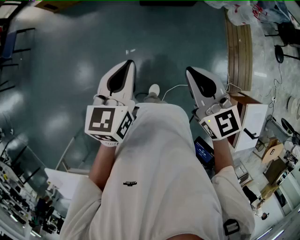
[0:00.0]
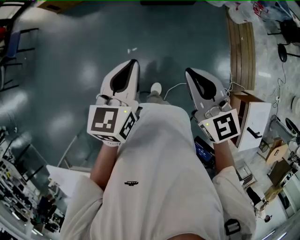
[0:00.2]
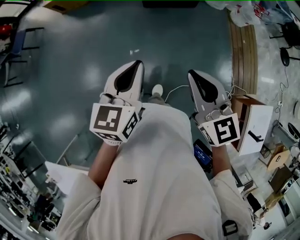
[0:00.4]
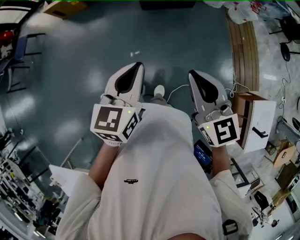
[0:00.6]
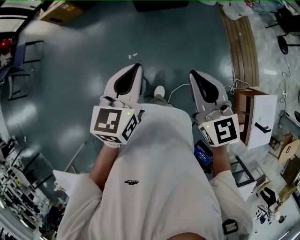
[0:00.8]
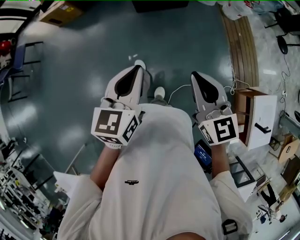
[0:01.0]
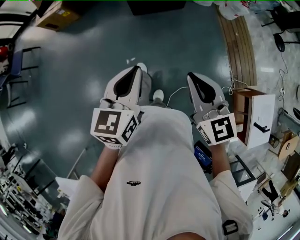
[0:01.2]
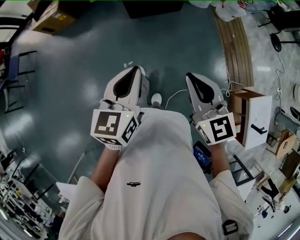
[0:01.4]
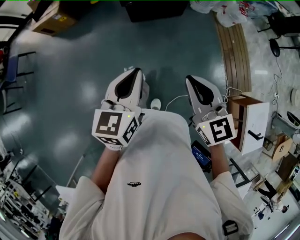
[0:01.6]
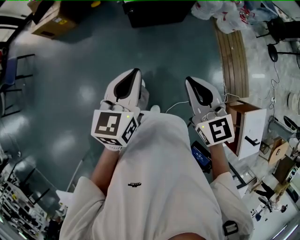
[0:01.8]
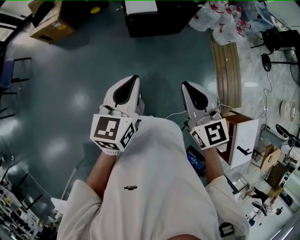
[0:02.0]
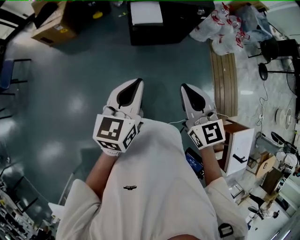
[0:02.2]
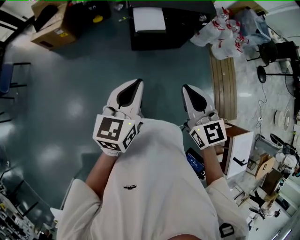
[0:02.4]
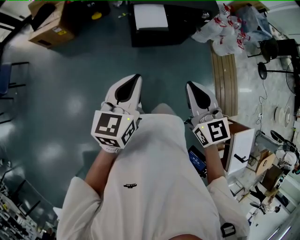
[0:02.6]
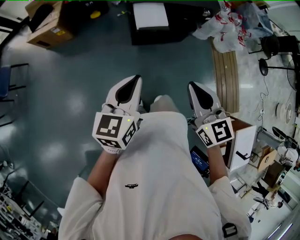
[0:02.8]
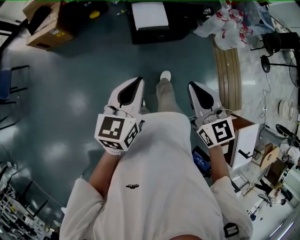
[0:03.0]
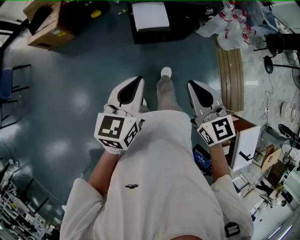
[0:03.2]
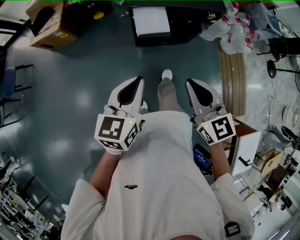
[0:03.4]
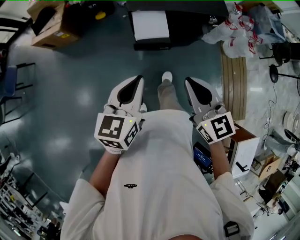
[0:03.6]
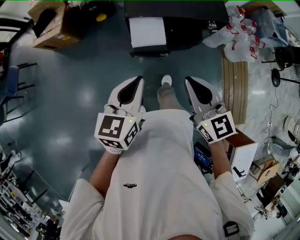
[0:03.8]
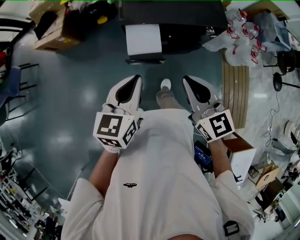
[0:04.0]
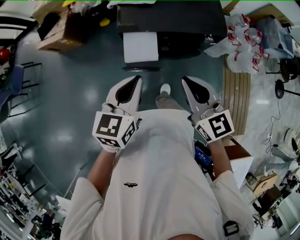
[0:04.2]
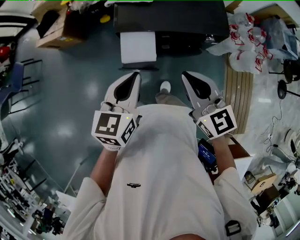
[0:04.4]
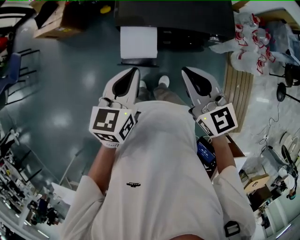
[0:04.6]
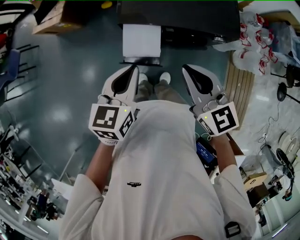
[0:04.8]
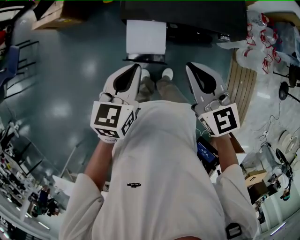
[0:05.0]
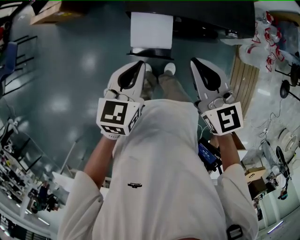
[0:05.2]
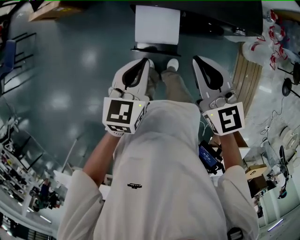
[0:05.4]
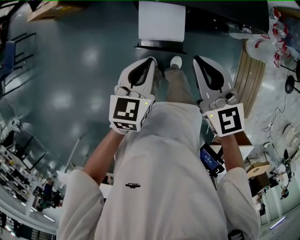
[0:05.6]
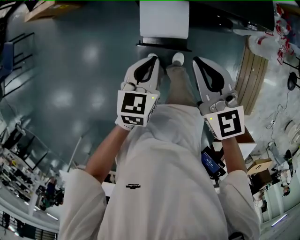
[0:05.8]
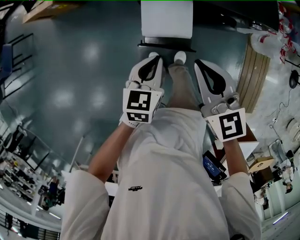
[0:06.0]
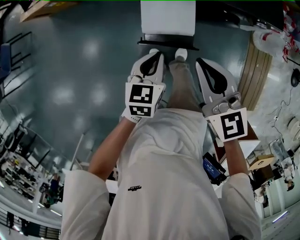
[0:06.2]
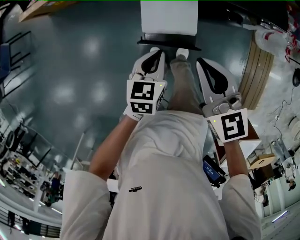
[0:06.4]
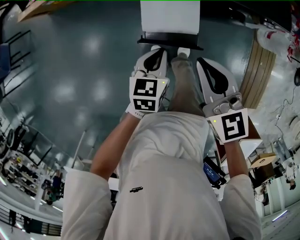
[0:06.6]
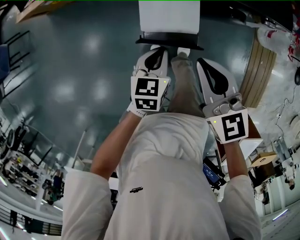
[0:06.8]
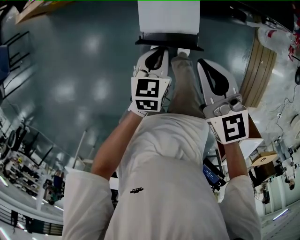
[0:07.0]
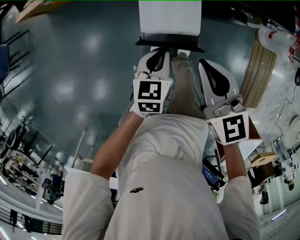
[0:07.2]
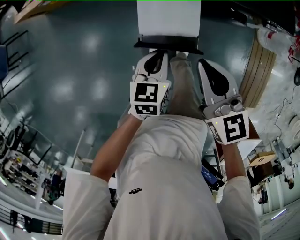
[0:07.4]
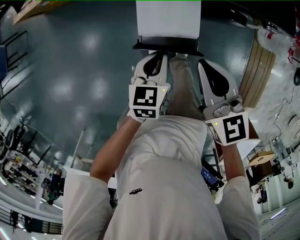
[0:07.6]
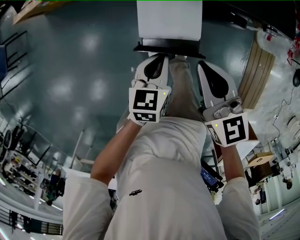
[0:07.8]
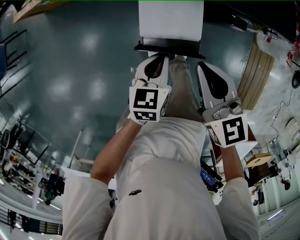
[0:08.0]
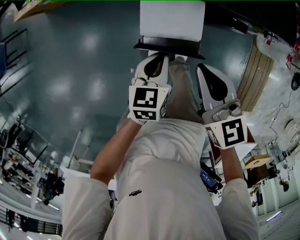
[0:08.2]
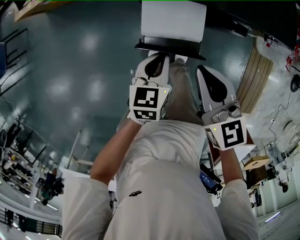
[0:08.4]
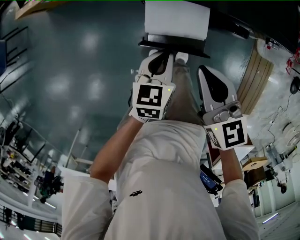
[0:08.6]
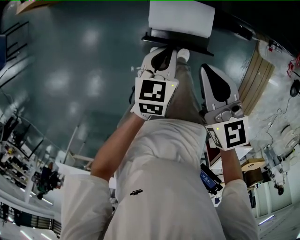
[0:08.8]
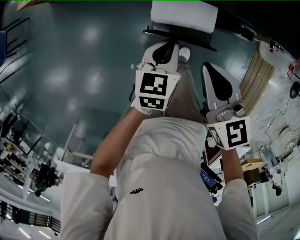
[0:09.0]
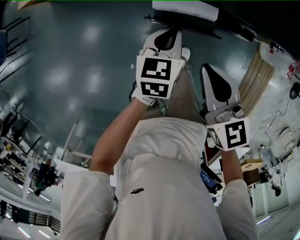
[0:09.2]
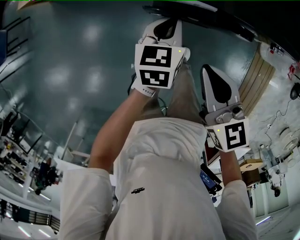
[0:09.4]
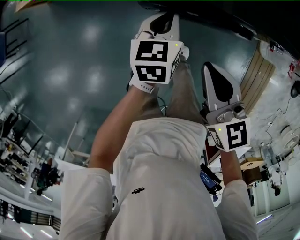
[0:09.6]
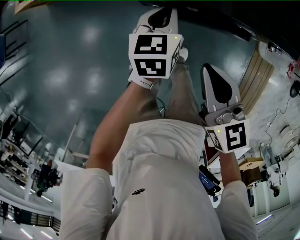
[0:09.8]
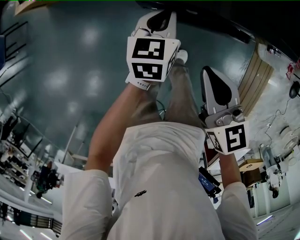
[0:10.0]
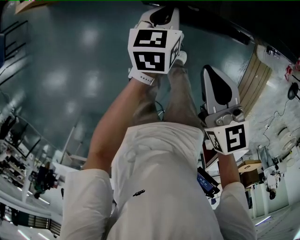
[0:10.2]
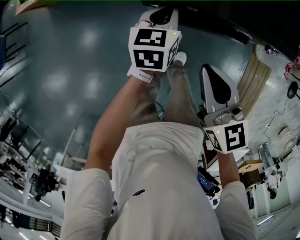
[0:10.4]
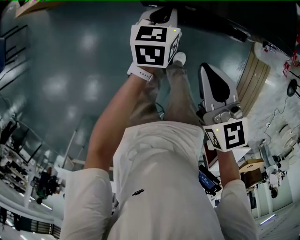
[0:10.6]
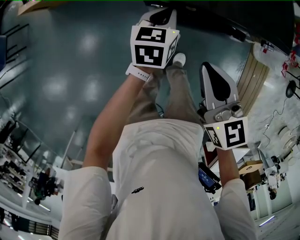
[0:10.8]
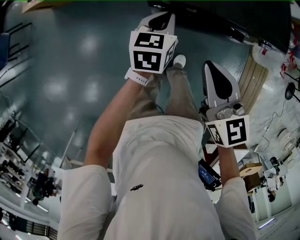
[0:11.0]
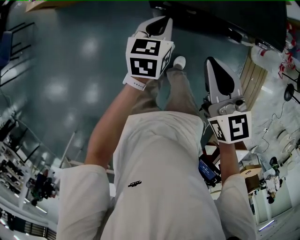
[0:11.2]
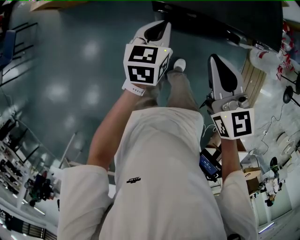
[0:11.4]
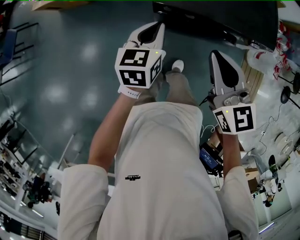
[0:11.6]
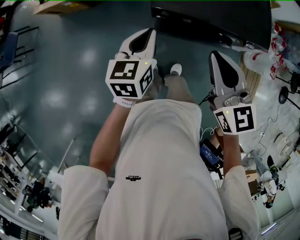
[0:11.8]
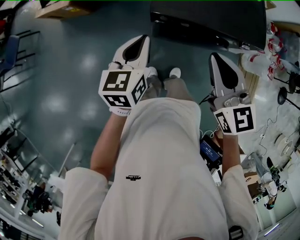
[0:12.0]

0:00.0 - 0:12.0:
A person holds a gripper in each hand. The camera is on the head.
0:00.0 - 0:01.6: The grippers both shift to the right by some 5 cm. The right gripper travels backward and back again, approximately 10 cm each way. The left gripper moves some 10 cm backward and comes back.
0:01.6 - 0:03.0: The right gripper goes approximately 20 cm forward; the left gripper is displaced forward and to the left by approximately 20 cm.
0:03.0 - 0:04.4: The grippers both shift forward and to the right by roughly 25 cm.
0:04.4 - 0:06.0: The right gripper heads to the left and downward, covering roughly 15 cm. Meanwhile the left gripper travels downward by about 20 cm.
0:06.0 - 0:07.6: The two grippers go about 5 cm downward.
0:07.6 - 0:09.0: The left gripper travels forward by roughly 5 cm.
0:09.0 - 0:10.4: The left gripper travels forward by some 15 cm.
0:10.4 - 0:12.0: The right gripper moves upward, some 15 cm. The left gripper travels upward, backward and to the left by approximately 20 cm.

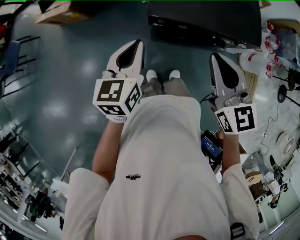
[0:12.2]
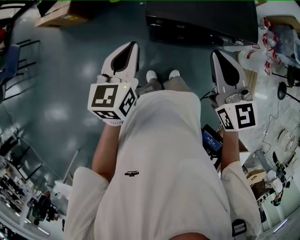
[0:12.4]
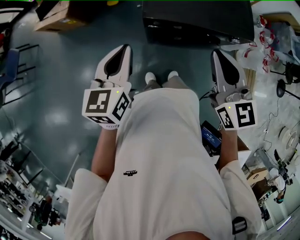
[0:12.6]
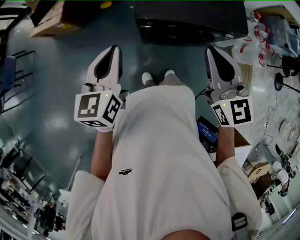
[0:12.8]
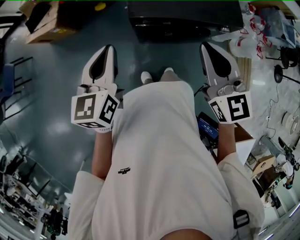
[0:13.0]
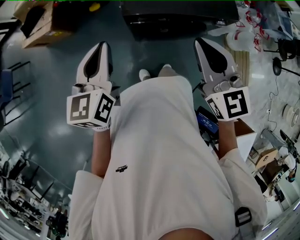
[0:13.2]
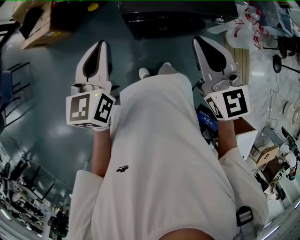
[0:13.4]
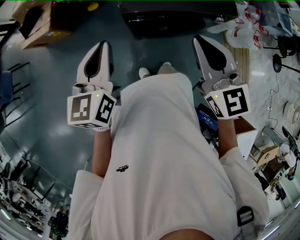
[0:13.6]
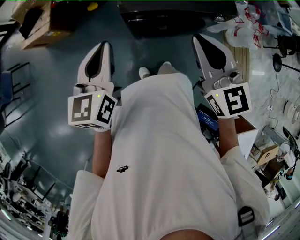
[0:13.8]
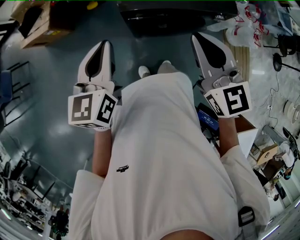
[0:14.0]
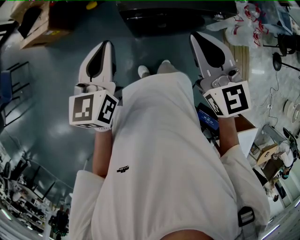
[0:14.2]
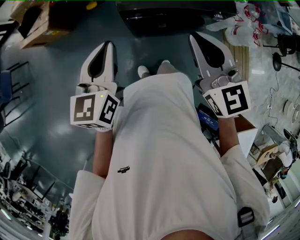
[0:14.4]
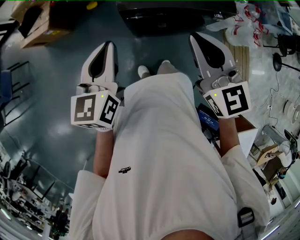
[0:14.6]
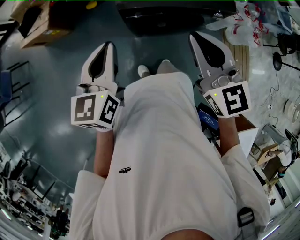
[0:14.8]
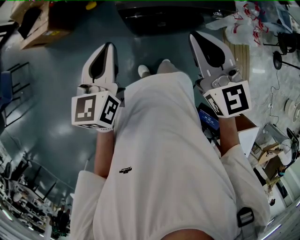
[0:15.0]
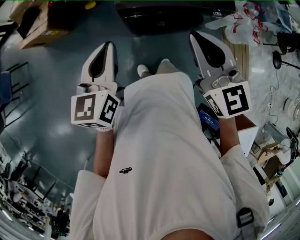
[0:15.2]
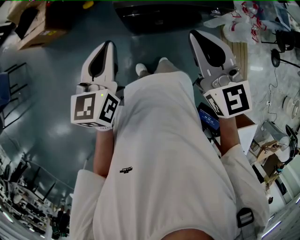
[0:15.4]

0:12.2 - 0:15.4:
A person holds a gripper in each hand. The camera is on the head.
0:12.2 - 0:13.8: The left gripper moves upward, about 5 cm.
0:13.8 - 0:15.4: The grippers move only a little.

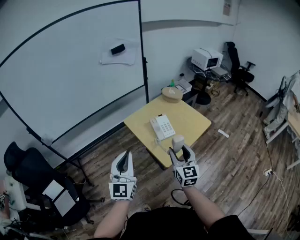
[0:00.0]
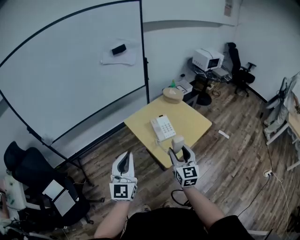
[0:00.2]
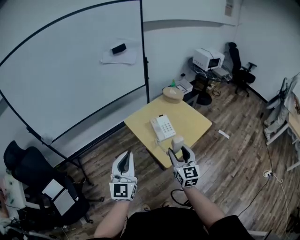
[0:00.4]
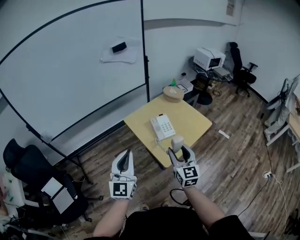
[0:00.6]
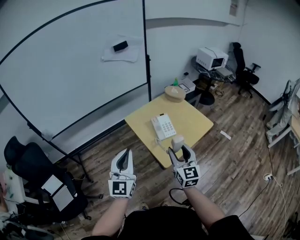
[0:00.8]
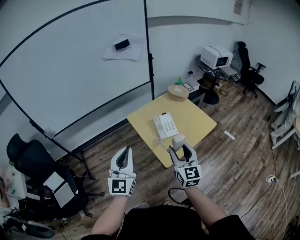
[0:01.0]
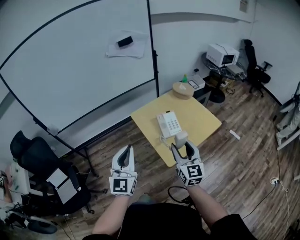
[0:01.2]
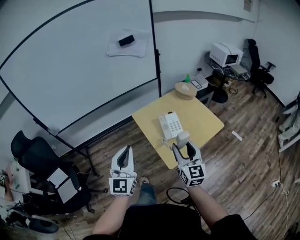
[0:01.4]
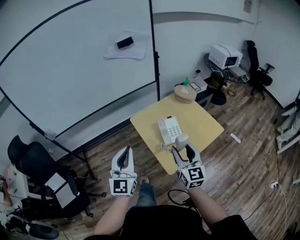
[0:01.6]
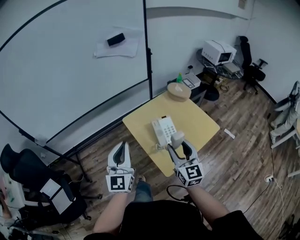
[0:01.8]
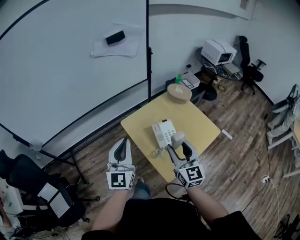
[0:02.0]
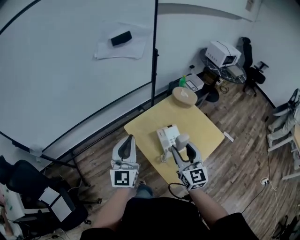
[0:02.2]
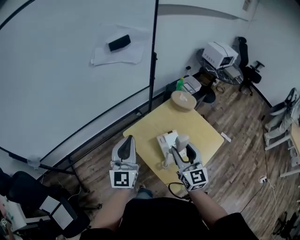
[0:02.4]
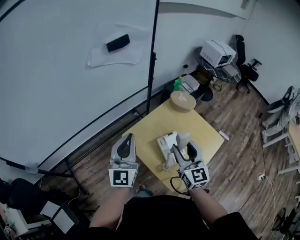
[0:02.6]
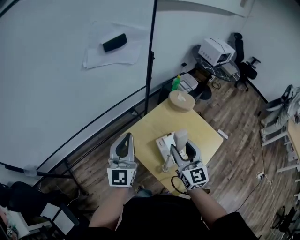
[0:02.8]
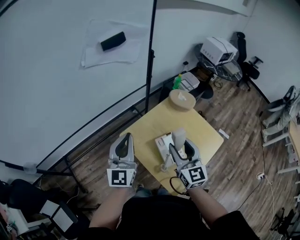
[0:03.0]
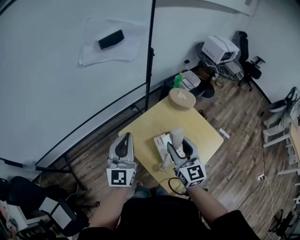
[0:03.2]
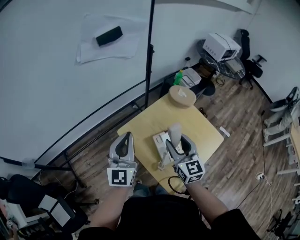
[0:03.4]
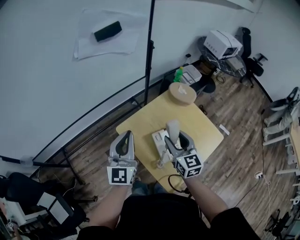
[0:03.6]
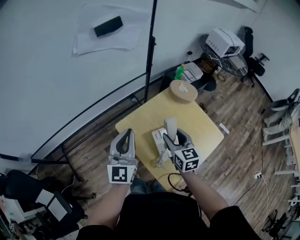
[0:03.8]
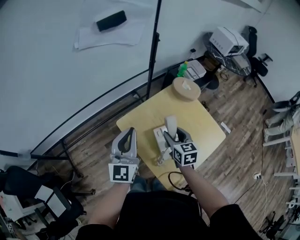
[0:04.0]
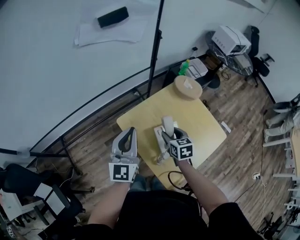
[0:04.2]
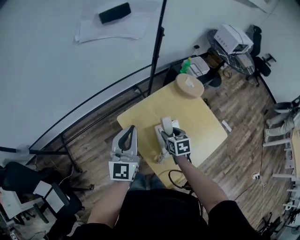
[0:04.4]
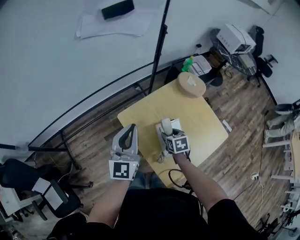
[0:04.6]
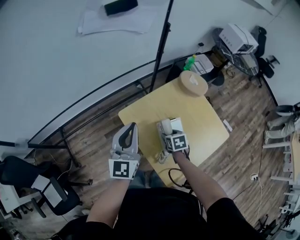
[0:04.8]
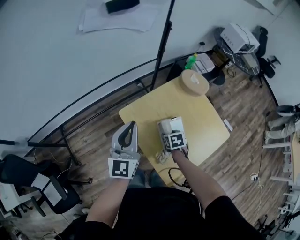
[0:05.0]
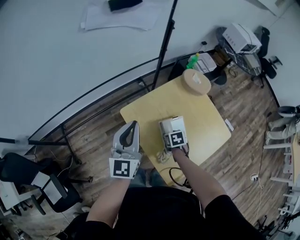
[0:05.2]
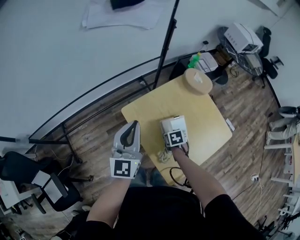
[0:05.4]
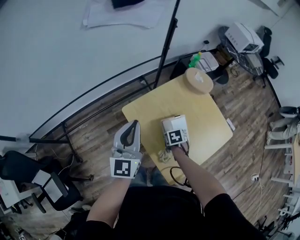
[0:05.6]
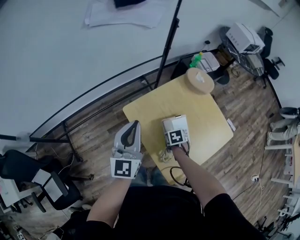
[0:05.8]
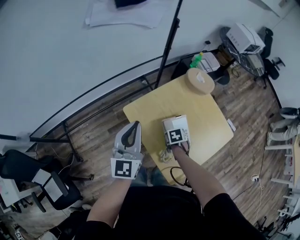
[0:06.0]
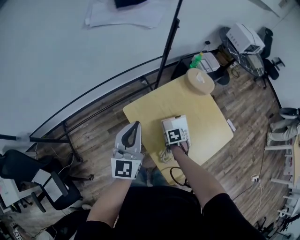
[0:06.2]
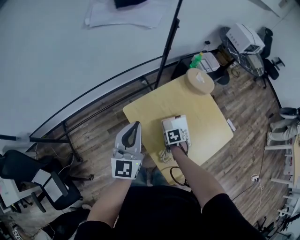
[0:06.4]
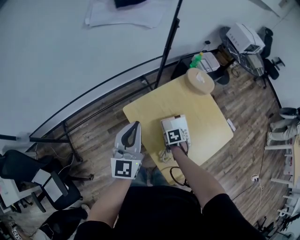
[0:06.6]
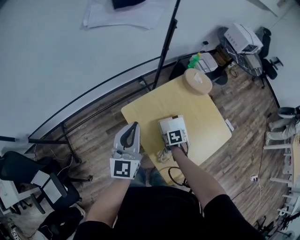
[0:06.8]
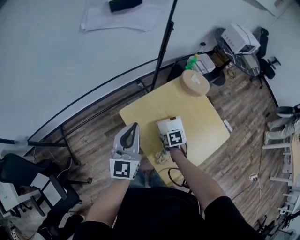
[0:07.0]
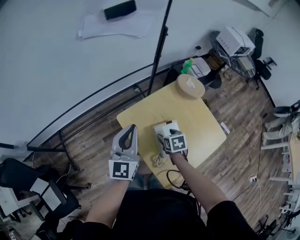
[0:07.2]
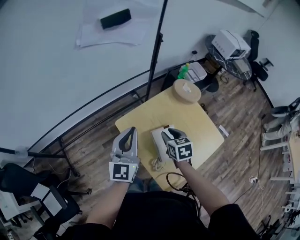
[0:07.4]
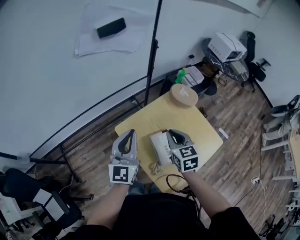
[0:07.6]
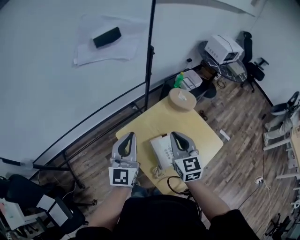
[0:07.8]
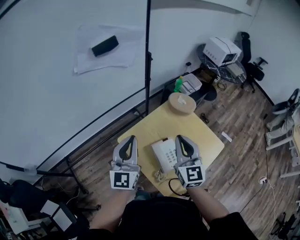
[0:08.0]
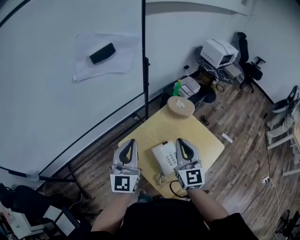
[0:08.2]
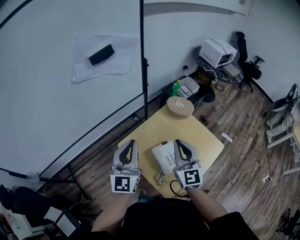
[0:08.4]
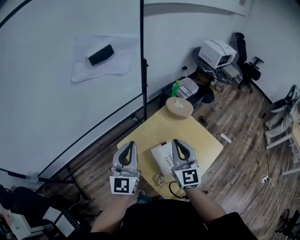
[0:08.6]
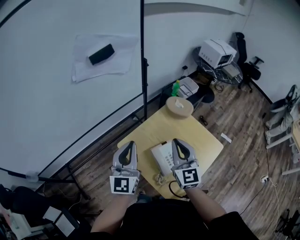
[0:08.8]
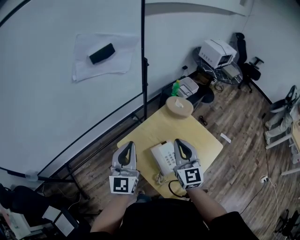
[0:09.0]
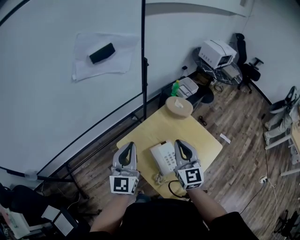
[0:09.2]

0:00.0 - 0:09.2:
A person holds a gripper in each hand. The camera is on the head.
0:00.0 - 0:01.6: Both grippers travel together forward, roughly 10 cm.
0:01.6 - 0:03.0: The two grippers go roughly 25 cm forward.
0:03.0 - 0:04.6: The left gripper heads downward, covering approximately 10 cm. Meanwhile the right gripper heads downward, covering some 25 cm, and angles its fingers downward, by approximately 50 degrees.
0:04.6 - 0:06.2: The right gripper heads downward, covering some 10 cm, and turns by roughly 20 degrees.
0:06.2 - 0:07.6: The left gripper changes place by approximately 5 cm; the right gripper shifts some 25 cm upward, points its fingers roughly 50 degrees further upward, and closes.
0:07.6 - 0:09.2: The right gripper moves upward, about 10 cm, and swivels approximately 30 degrees.
